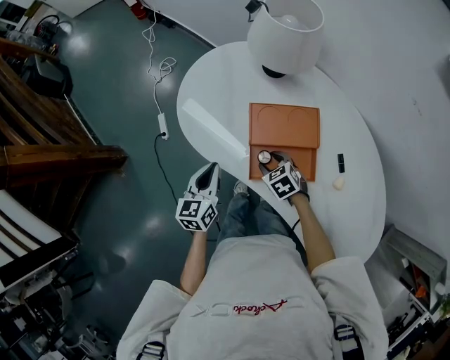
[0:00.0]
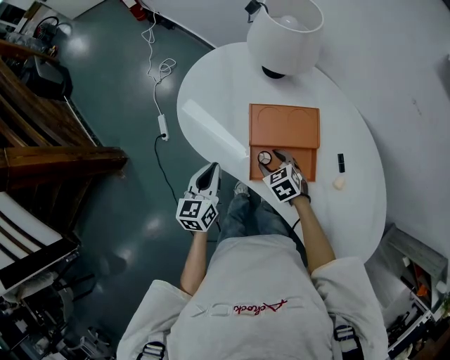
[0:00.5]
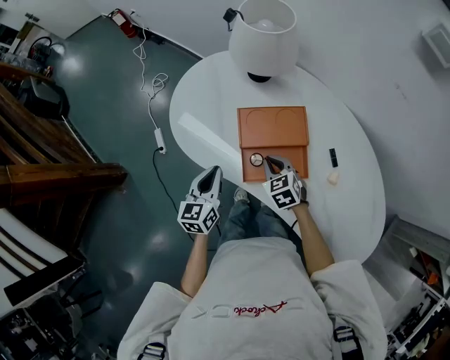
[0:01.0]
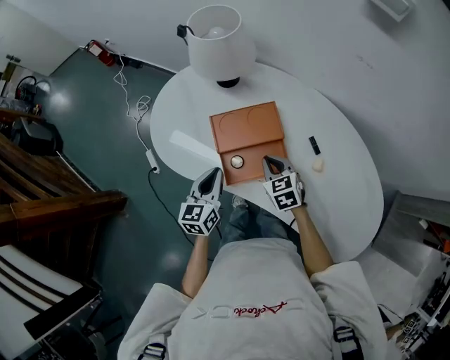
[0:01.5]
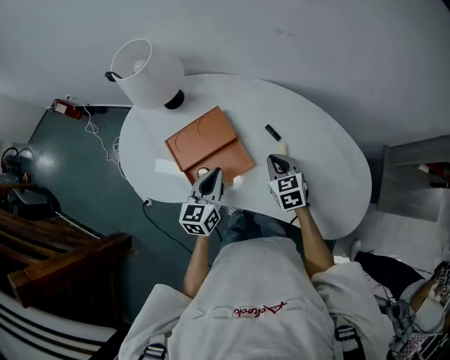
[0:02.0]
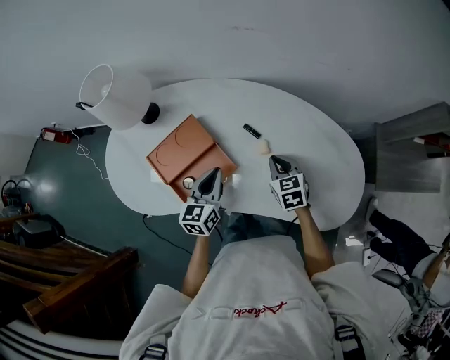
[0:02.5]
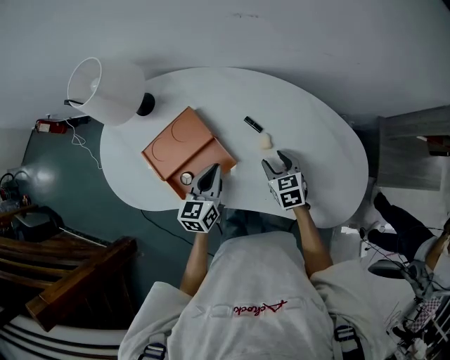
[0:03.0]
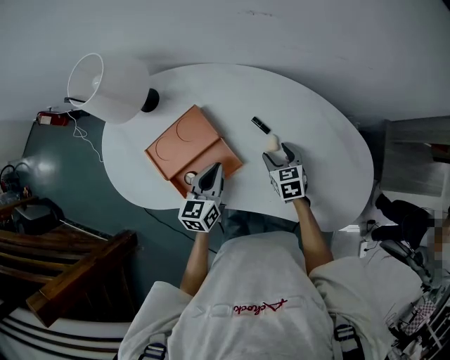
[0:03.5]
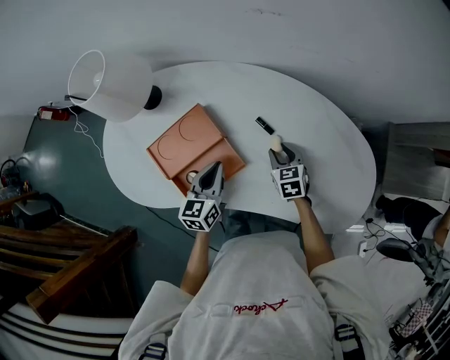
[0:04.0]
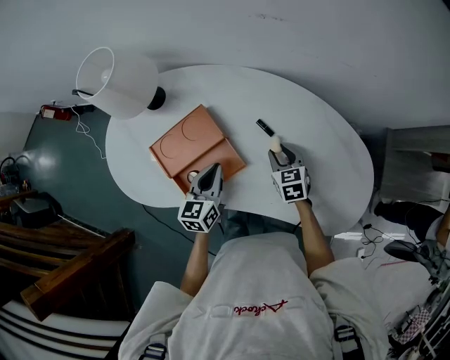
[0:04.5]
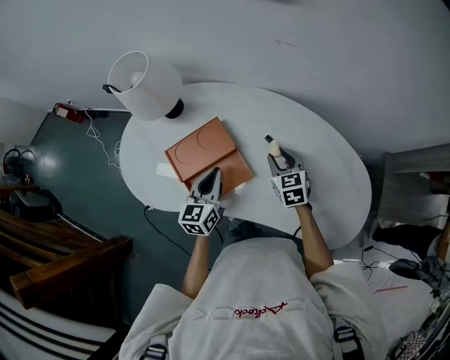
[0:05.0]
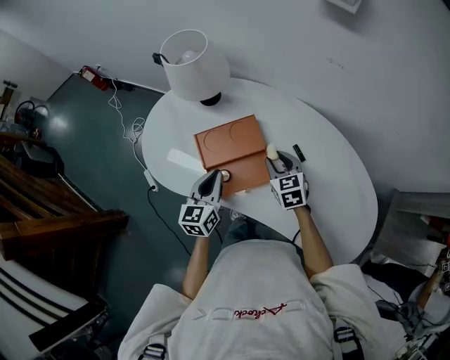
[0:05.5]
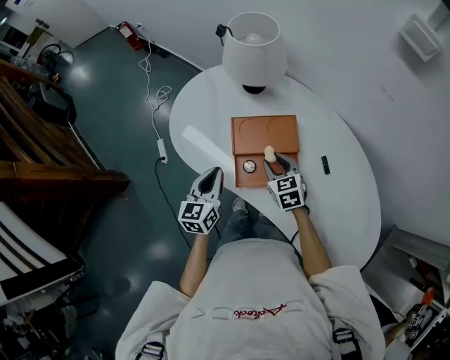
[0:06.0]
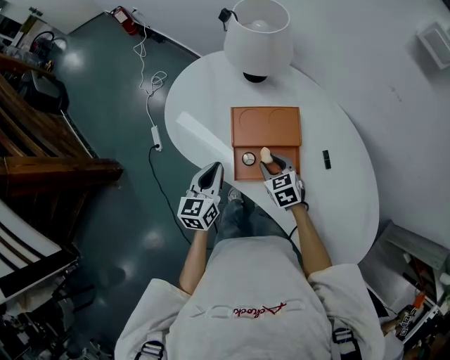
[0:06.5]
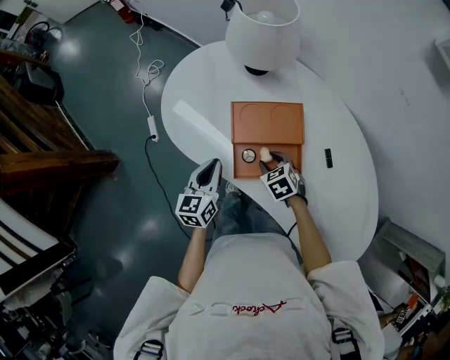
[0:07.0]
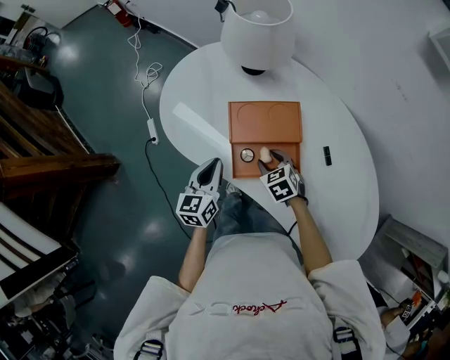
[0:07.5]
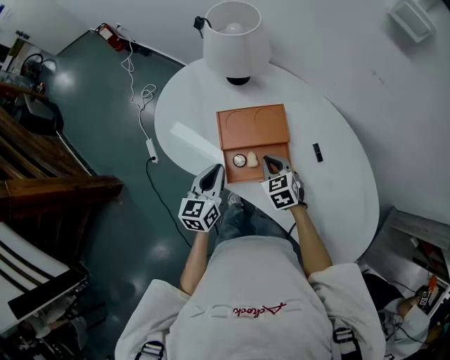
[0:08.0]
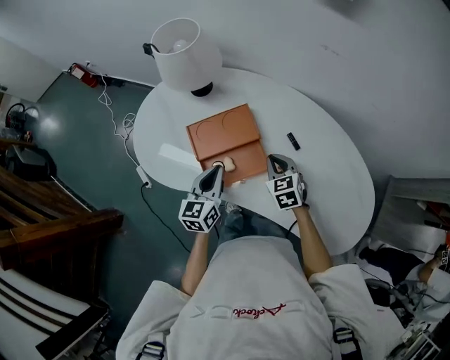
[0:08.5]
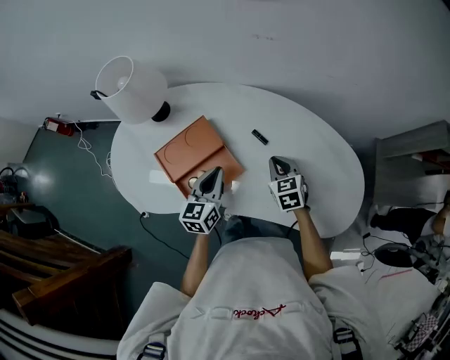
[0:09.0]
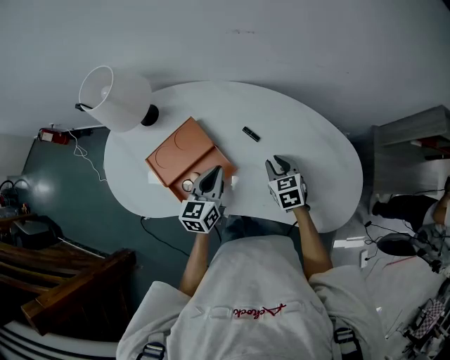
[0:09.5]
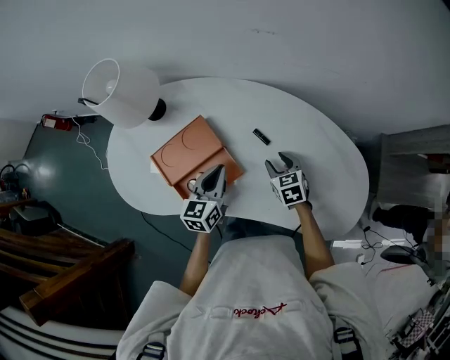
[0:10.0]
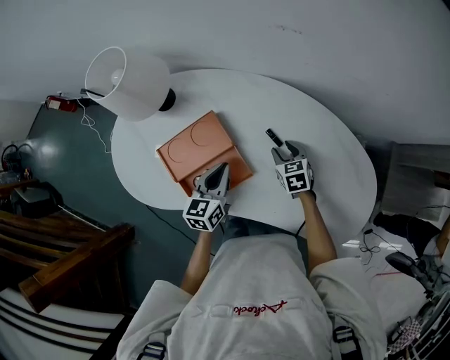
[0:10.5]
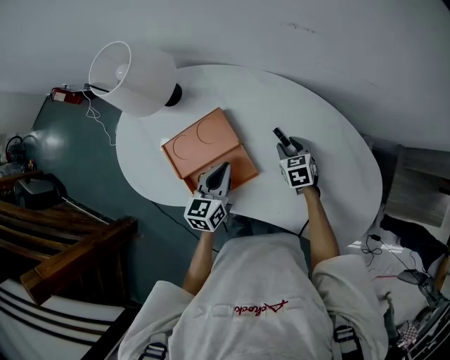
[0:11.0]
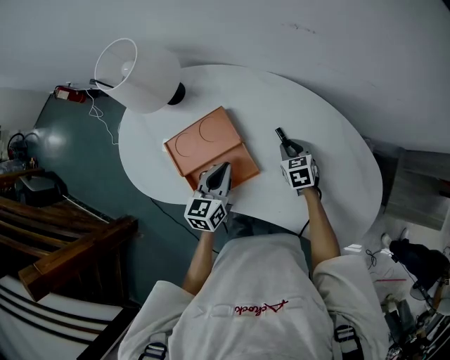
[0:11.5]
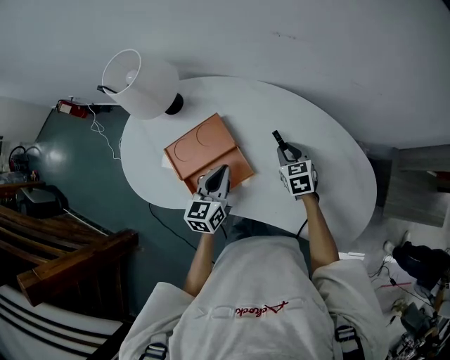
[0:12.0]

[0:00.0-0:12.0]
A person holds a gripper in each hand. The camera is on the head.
0:00.0 to 0:02.0: The right gripper shifts by roughly 25 cm, turns by approximately 50 degrees, and closes. Meanwhile the left gripper shifts by roughly 25 cm, and turns by roughly 30 degrees.
0:02.0 to 0:04.0: The right gripper goes approximately 10 cm downward and to the right, and opens, while the left gripper heads downward, covering about 5 cm.
0:04.0 to 0:06.0: The right gripper moves about 30 cm, and turns by roughly 40 degrees; the left gripper moves roughly 25 cm, and swivels roughly 30 degrees.
0:06.0 to 0:08.0: The right gripper travels downward and back again, about 10 cm each way, and closes its fingers.
0:08.0 to 0:10.0: The left gripper ends up some 20 cm from where it was, and changes its angle by about 30 degrees, while the right gripper ends up roughly 25 cm from where it was, swivels about 30 degrees, and opens.
0:10.0 to 0:12.0: The right gripper changes place by approximately 5 cm, and closes up.

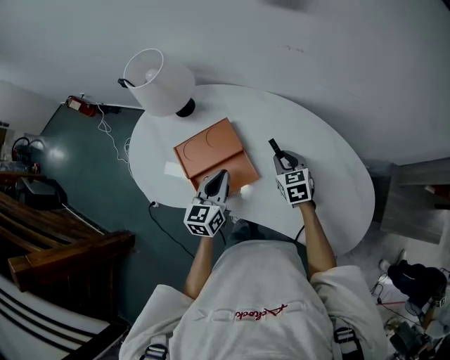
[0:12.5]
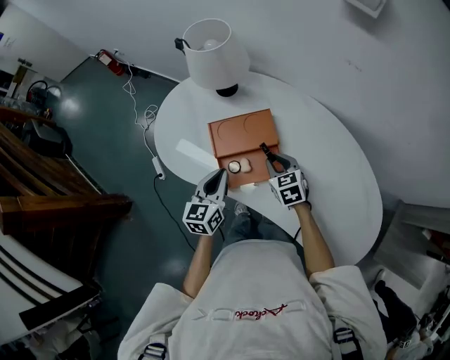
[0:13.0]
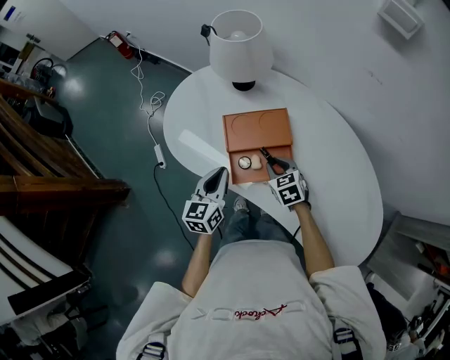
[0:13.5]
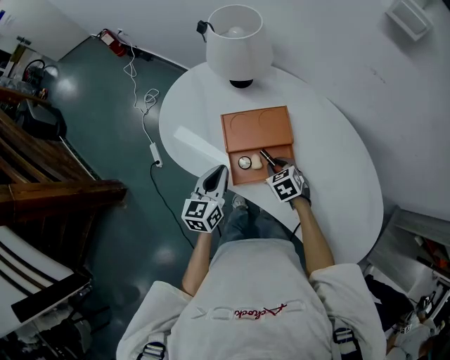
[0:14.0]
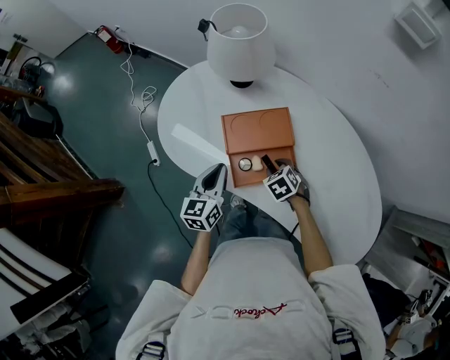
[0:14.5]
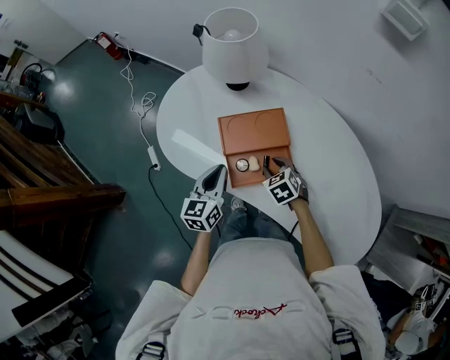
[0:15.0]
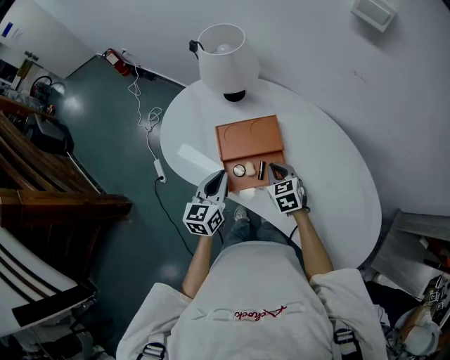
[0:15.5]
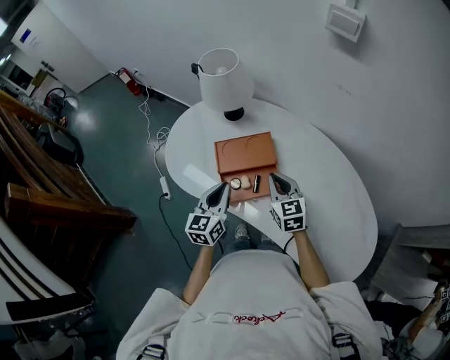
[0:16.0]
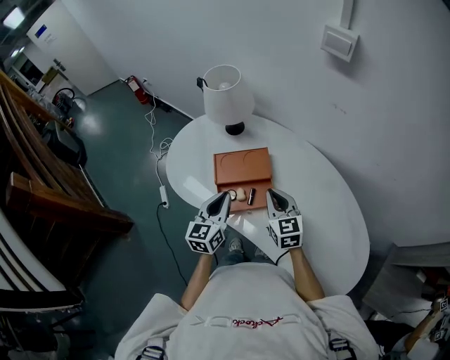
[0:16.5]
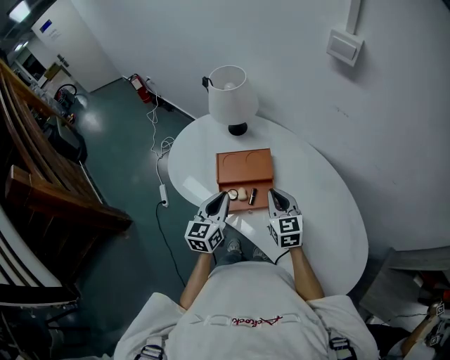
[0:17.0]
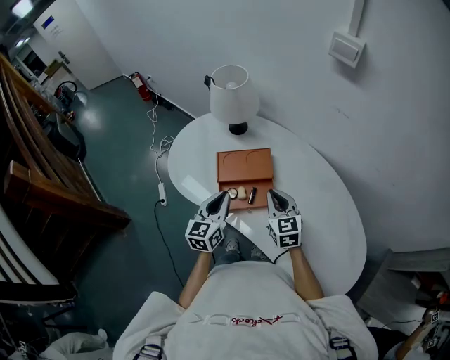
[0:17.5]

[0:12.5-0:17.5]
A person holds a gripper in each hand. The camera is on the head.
0:12.5 to 0:15.0: Both grippers travel together to the left, roughly 20 cm. The right gripper turns by about 40 degrees.
0:15.0 to 0:17.5: The right gripper goes roughly 20 cm upward, angles its fingers upward, by some 40 degrees, and closes. Meanwhile the left gripper heads upward, to the right and backward, covering some 10 cm.

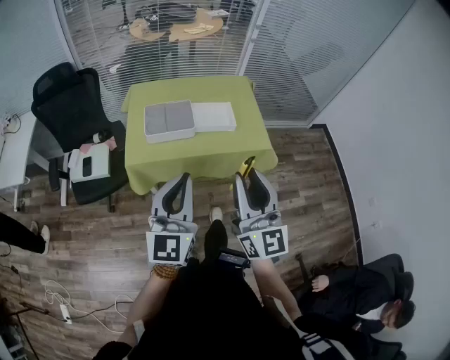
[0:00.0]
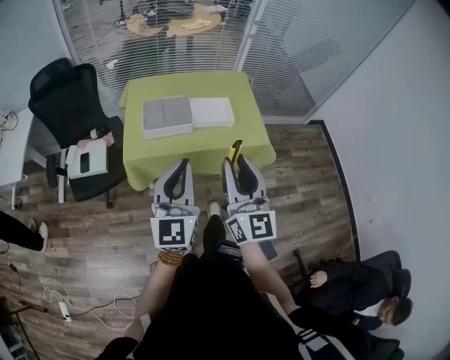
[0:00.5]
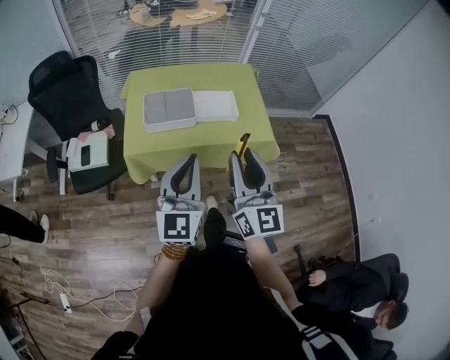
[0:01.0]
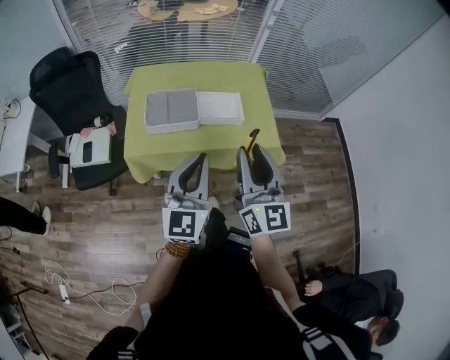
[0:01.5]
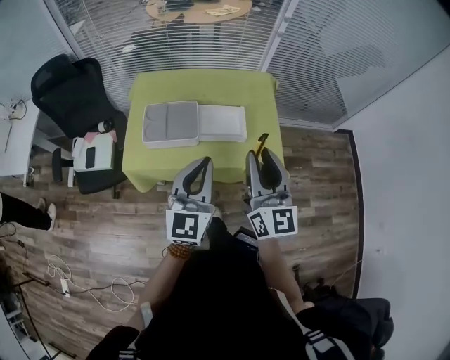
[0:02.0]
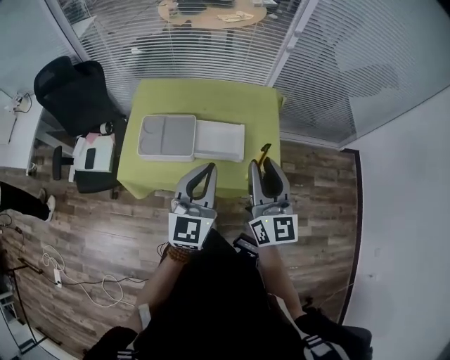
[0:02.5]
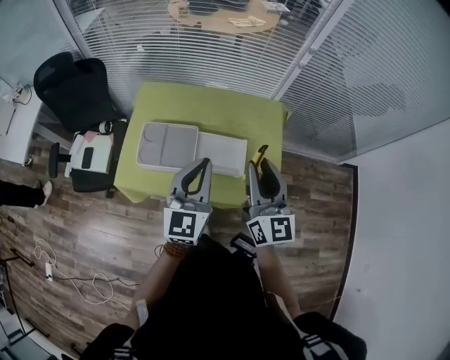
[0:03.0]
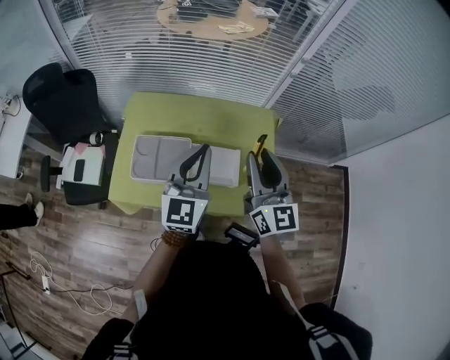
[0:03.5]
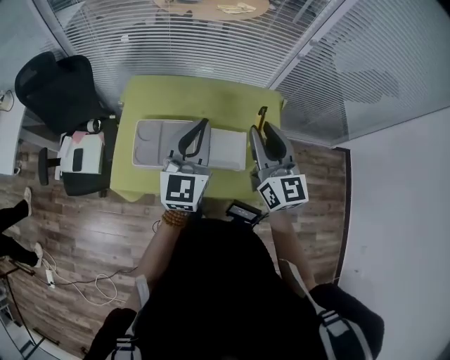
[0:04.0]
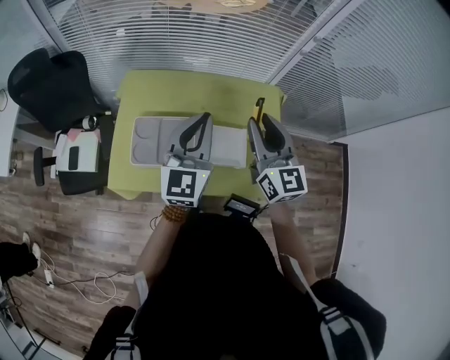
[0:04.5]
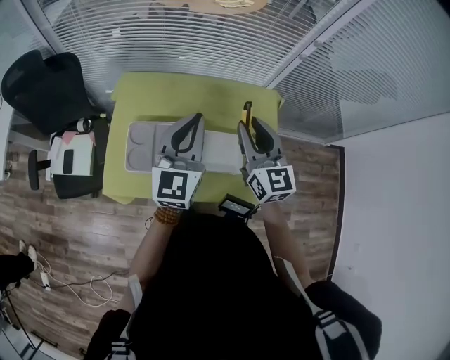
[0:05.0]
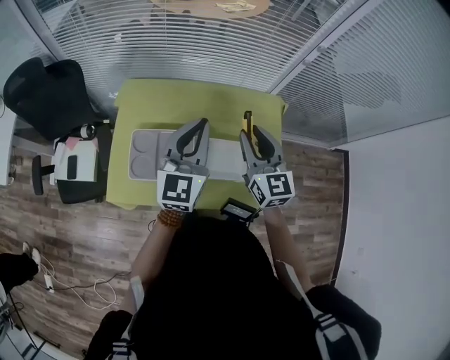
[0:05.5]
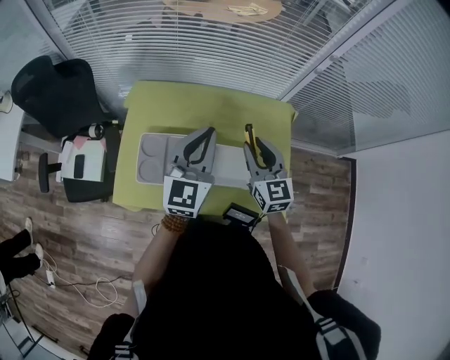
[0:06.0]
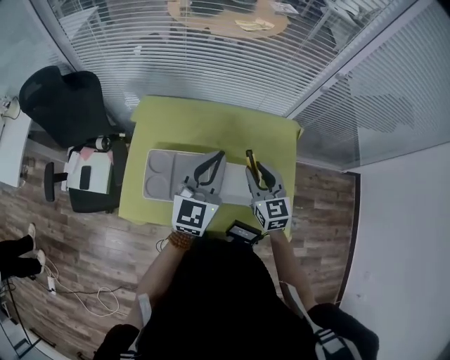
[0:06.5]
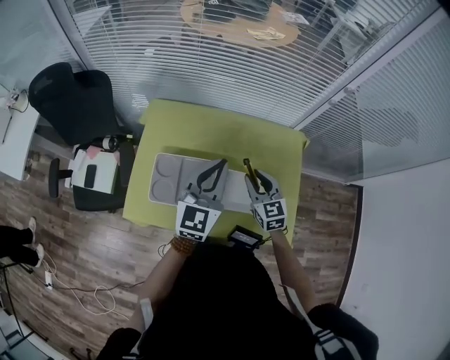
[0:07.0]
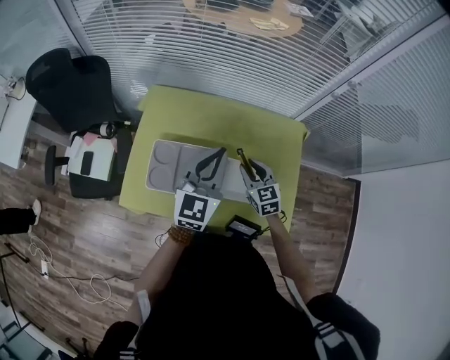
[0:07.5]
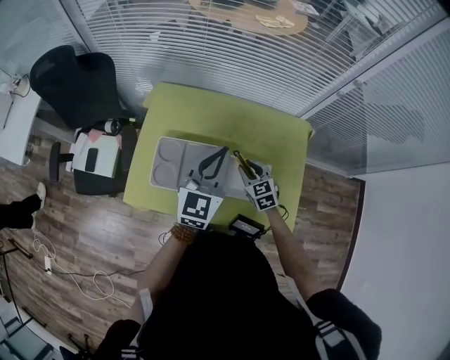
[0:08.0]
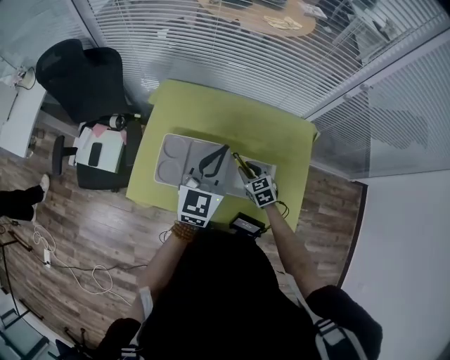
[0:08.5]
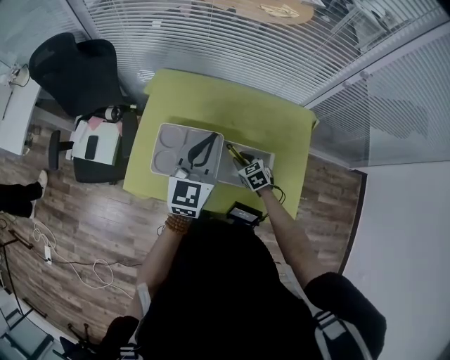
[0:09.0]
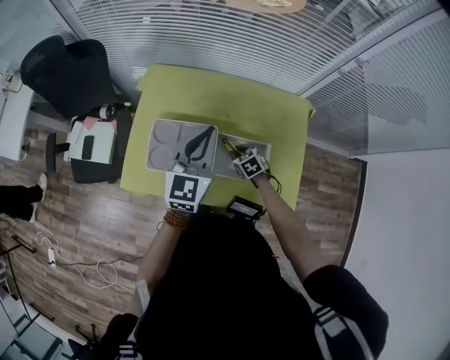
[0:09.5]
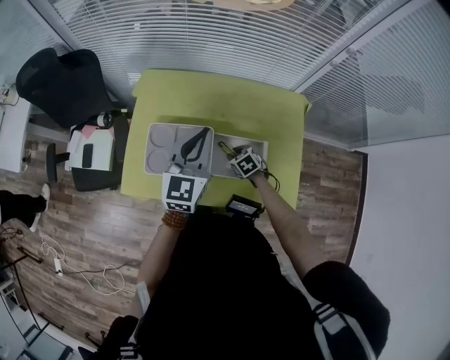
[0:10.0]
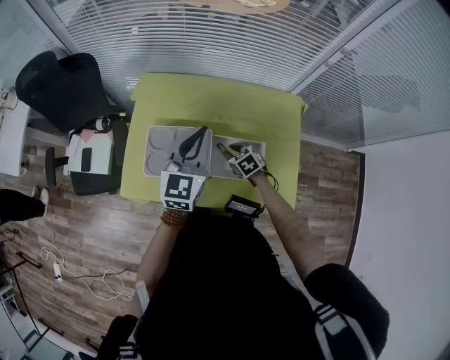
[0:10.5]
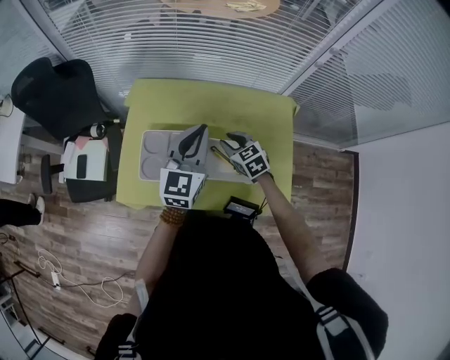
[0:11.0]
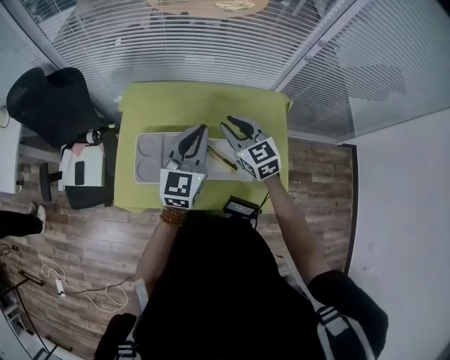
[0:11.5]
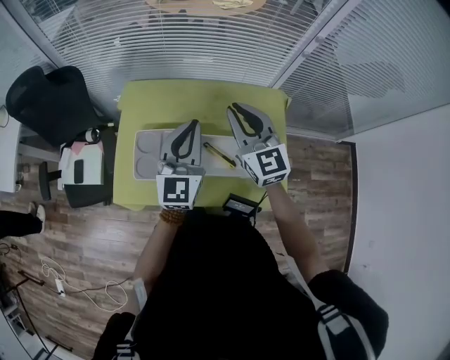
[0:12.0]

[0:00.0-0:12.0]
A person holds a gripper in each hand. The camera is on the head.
0:00.0 to 0:02.0: The right gripper travels forward by roughly 20 cm. Meanwhile the left gripper goes roughly 20 cm forward and to the right.
0:02.0 to 0:04.0: Both grippers move forward, roughly 25 cm.
0:04.0 to 0:06.0: The left gripper moves forward, approximately 5 cm; the right gripper shifts about 15 cm downward and forward.
0:06.0 to 0:08.0: The right gripper heads downward, covering approximately 20 cm, and swivels roughly 30 degrees.
0:08.0 to 0:10.0: The right gripper goes about 10 cm downward, and rotates about 20 degrees.
0:10.0 to 0:12.0: The right gripper is displaced upward by approximately 40 cm, and tips its fingers upward by approximately 60 degrees. Meanwhile the left gripper goes about 5 cm upward.
